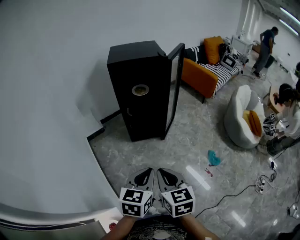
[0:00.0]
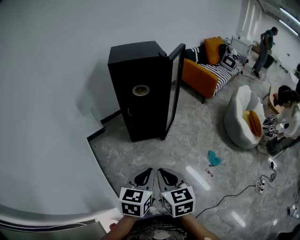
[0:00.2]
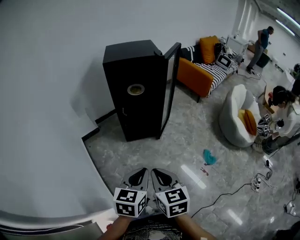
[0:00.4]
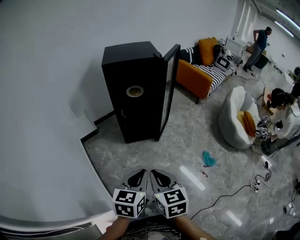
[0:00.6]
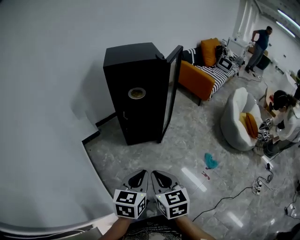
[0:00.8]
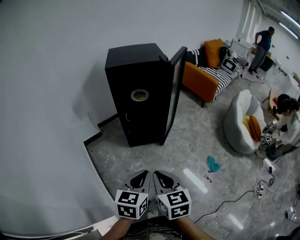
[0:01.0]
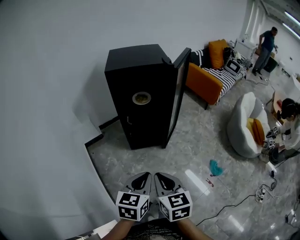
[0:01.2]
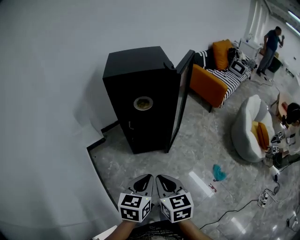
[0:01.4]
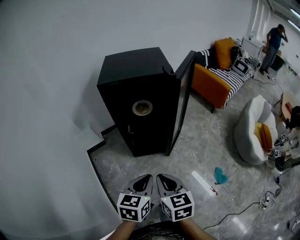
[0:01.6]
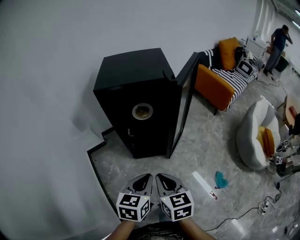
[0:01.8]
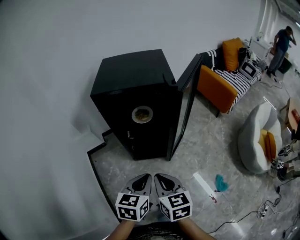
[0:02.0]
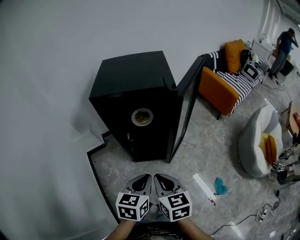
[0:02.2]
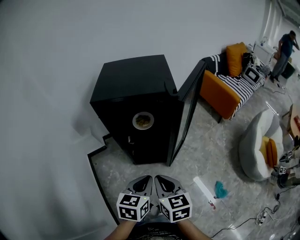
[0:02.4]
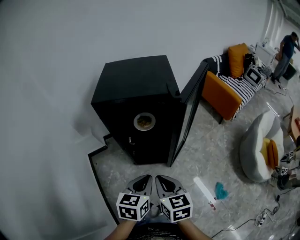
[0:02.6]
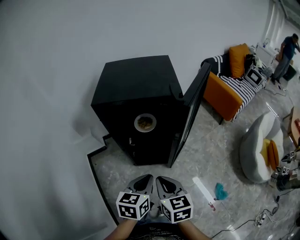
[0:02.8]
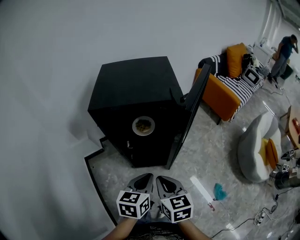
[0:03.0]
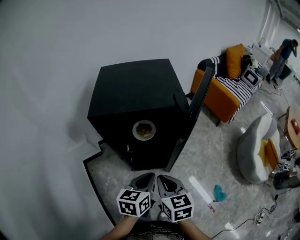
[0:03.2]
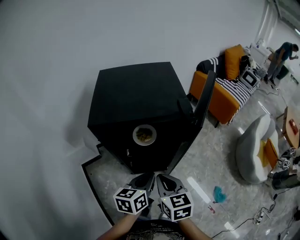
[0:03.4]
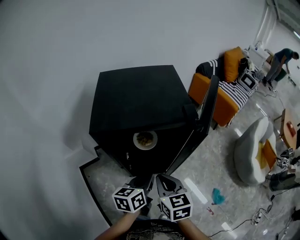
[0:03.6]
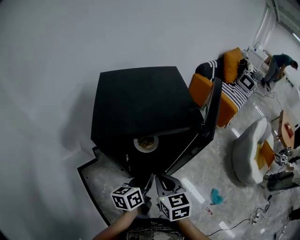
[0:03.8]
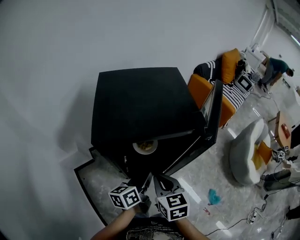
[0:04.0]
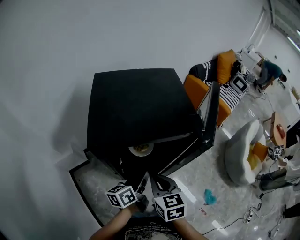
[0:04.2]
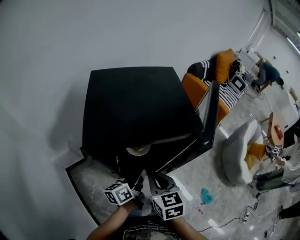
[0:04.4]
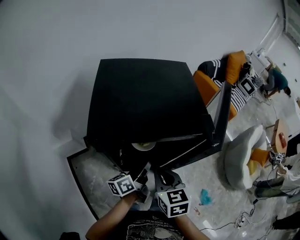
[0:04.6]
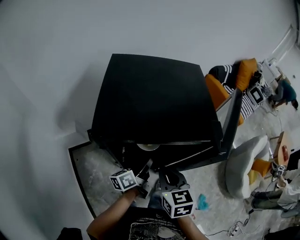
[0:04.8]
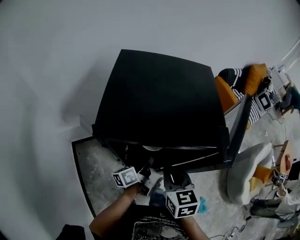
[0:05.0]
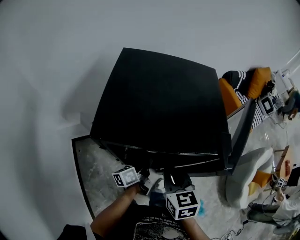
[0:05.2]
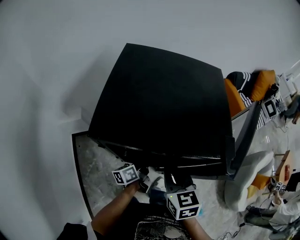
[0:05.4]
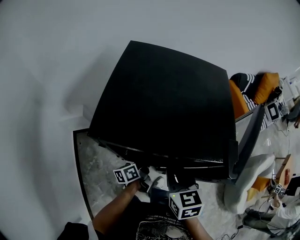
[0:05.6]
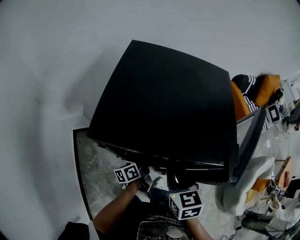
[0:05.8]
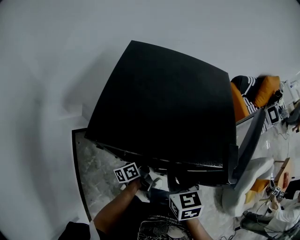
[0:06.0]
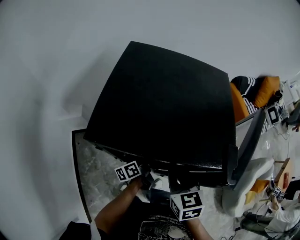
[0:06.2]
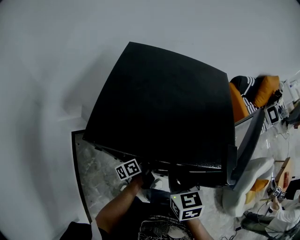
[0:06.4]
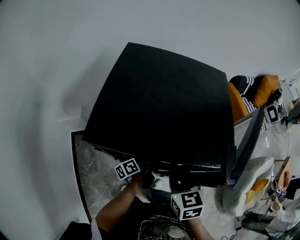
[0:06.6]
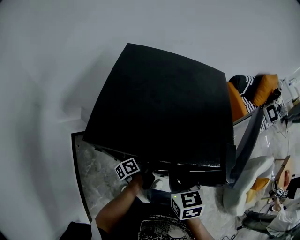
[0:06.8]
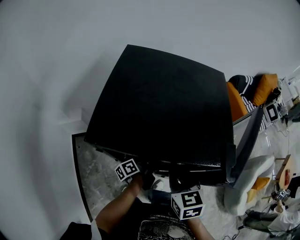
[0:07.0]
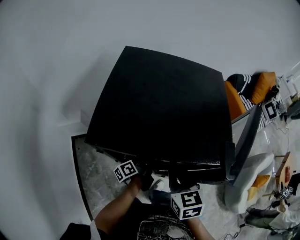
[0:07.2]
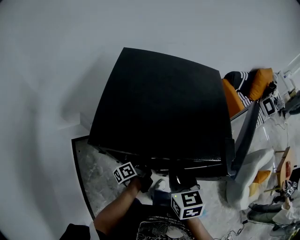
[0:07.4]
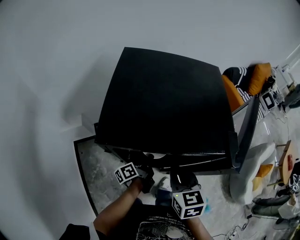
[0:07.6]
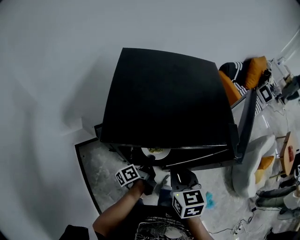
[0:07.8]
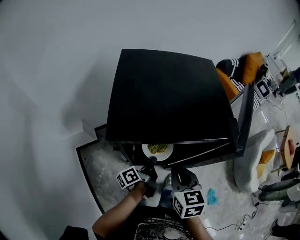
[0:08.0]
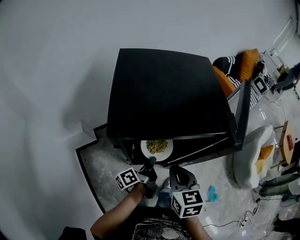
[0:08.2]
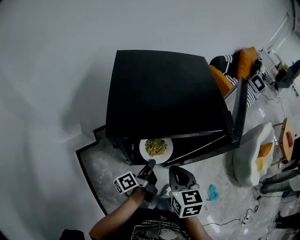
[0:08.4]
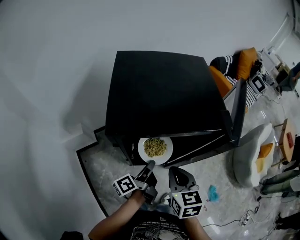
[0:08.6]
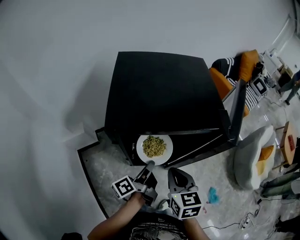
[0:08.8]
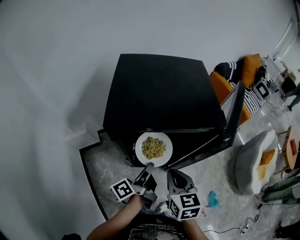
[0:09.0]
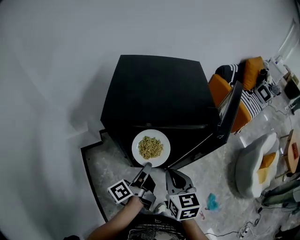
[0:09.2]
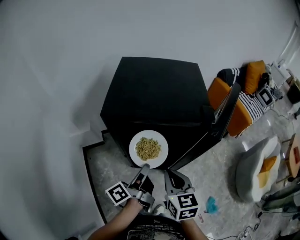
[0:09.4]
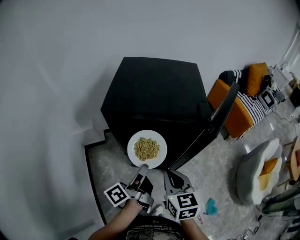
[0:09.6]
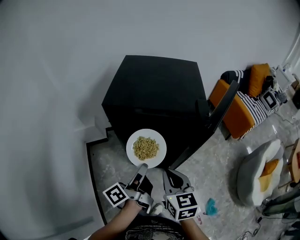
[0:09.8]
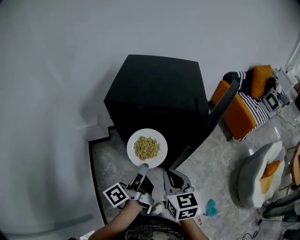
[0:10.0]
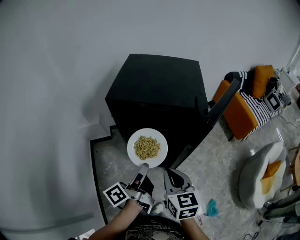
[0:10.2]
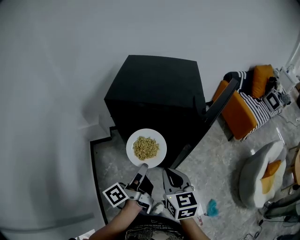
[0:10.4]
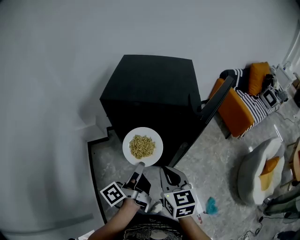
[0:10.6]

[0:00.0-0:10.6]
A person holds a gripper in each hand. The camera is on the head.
0:00.0 to 0:01.6: The two grippers go roughly 25 cm forward.
0:01.6 to 0:03.0: The two grippers go about 20 cm forward.
0:03.0 to 0:04.6: The grippers both shift forward and to the left by roughly 20 cm. The left gripper rotates around the line of its fingers by about 40 degrees, counterclockwise from behind.
0:04.6 to 0:06.0: The right gripper is displaced forward by about 5 cm, while the left gripper travels downward and forward by about 15 cm, changes its angle by approximately 20 degrees, and opens up.
0:06.0 to 0:07.6: The left gripper closes up.
0:07.6 to 0:09.0: The right gripper is displaced backward by roughly 10 cm; the left gripper shifts approximately 20 cm upward and backward.
0:09.0 to 0:10.6: The right gripper moves backward and to the right, roughly 10 cm; the left gripper travels backward and upward by approximately 15 cm.

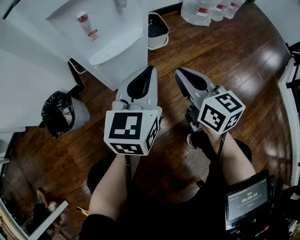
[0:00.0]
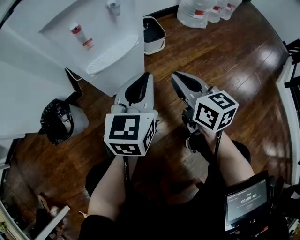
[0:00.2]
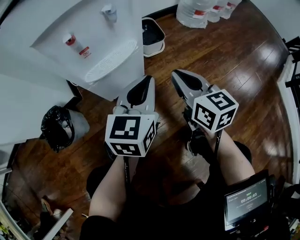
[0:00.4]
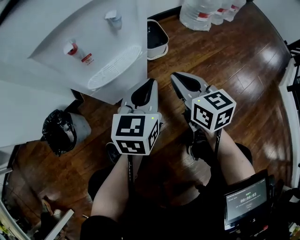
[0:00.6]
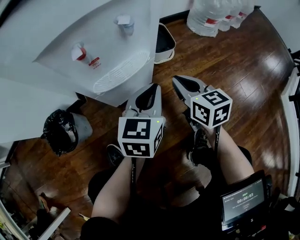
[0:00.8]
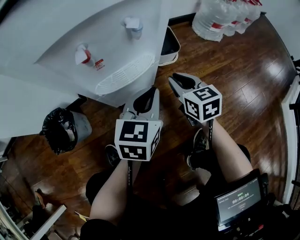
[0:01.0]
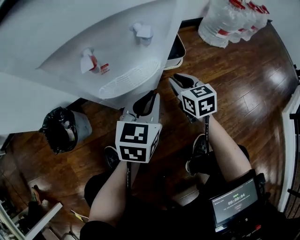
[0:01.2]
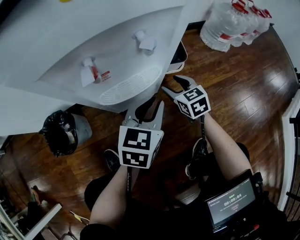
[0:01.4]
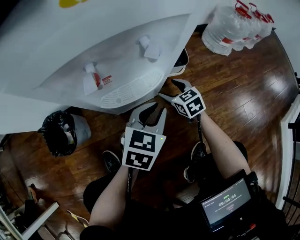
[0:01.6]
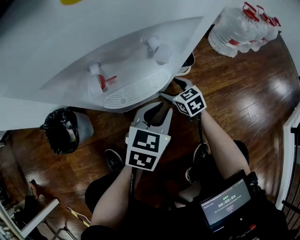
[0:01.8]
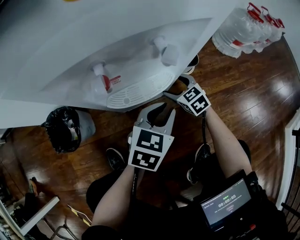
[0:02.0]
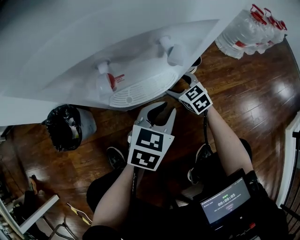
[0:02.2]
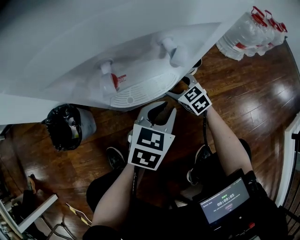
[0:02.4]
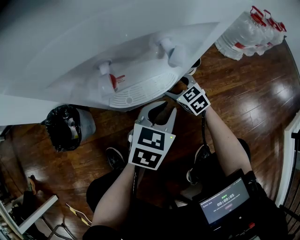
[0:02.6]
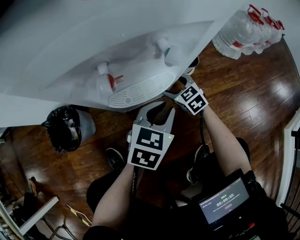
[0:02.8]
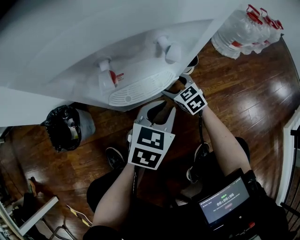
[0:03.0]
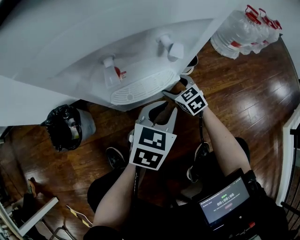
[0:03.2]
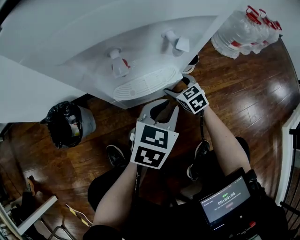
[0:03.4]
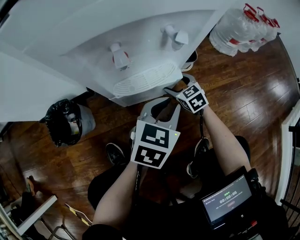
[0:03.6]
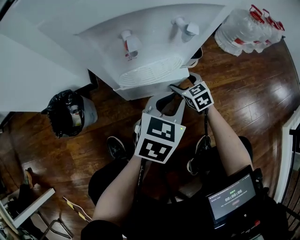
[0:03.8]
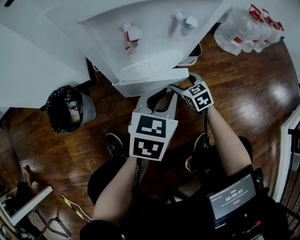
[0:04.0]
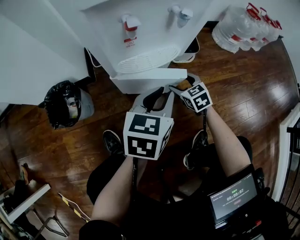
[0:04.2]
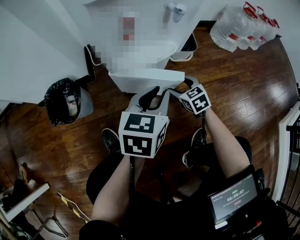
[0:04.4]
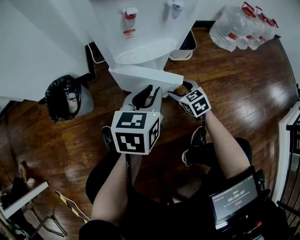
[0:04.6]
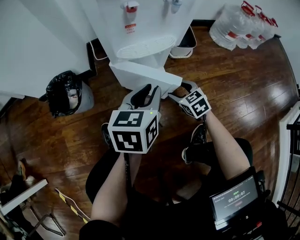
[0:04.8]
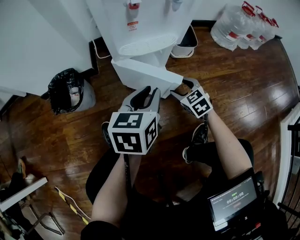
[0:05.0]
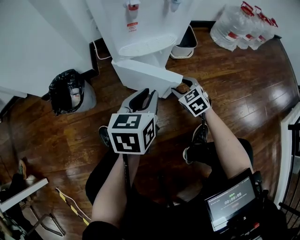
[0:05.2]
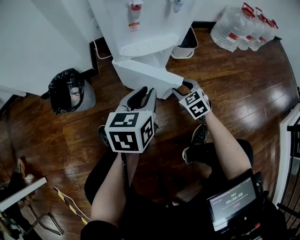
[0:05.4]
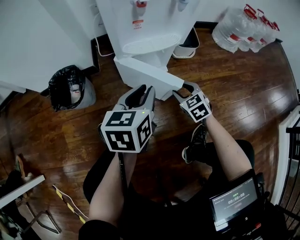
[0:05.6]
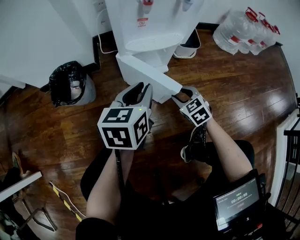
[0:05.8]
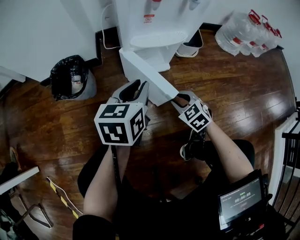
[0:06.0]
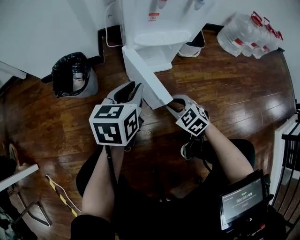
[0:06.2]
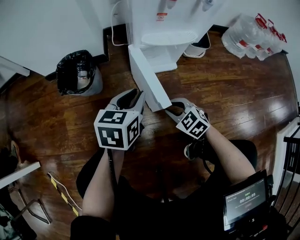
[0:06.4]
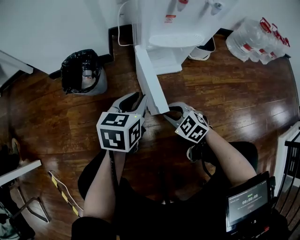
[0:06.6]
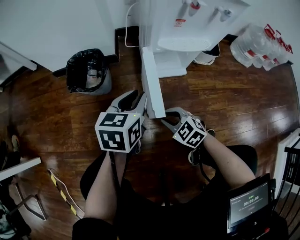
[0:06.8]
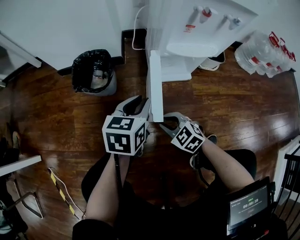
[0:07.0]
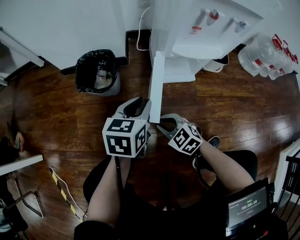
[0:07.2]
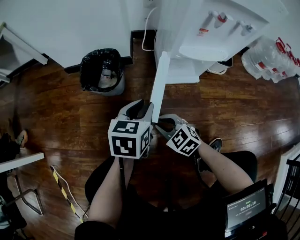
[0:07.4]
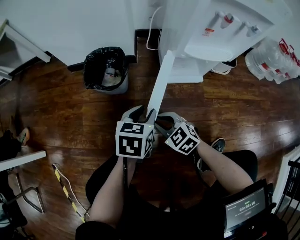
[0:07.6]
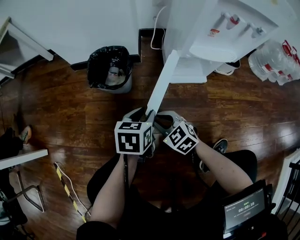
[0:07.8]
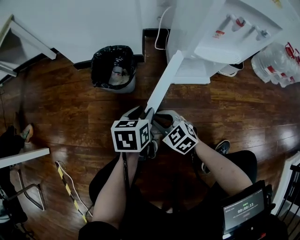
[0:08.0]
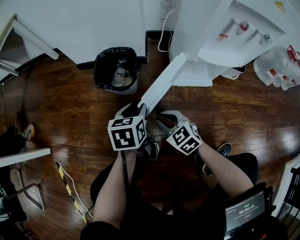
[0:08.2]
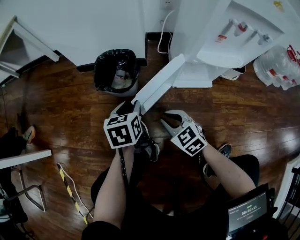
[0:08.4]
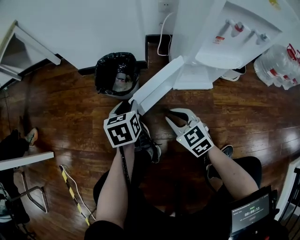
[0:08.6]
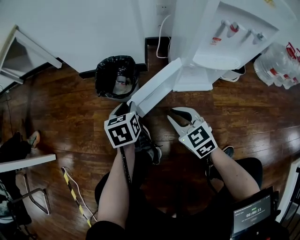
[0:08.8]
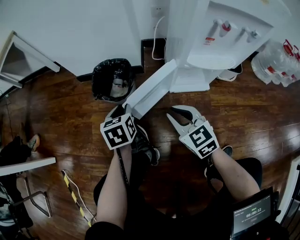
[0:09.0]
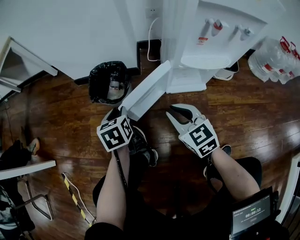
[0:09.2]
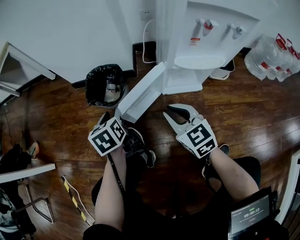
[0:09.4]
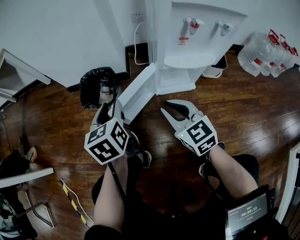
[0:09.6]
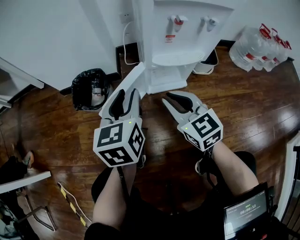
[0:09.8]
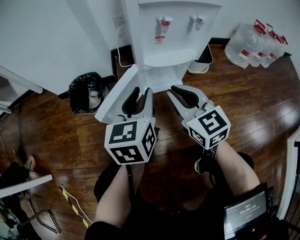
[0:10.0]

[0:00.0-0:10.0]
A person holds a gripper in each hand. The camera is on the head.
0:00.0 to 0:01.4: The right gripper moves forward and downward, roughly 25 cm, rotates some 30 degrees, and opens up; the left gripper goes some 15 cm forward and downward.
0:01.4 to 0:02.8: The right gripper goes approximately 5 cm downward.
0:02.8 to 0:04.2: Both grippers travel together backward, some 5 cm.
0:04.2 to 0:05.8: The left gripper heads to the left and backward, covering roughly 10 cm. The right gripper moves backward, some 15 cm, and closes.
0:05.8 to 0:07.2: The left gripper heads to the left, covering approximately 15 cm. The right gripper is displaced to the left by some 25 cm, and rotates about 30 degrees.
0:07.2 to 0:08.6: The right gripper shifts about 5 cm forward. The left gripper shifts roughly 15 cm to the left, forward and downward, and swivels roughly 30 degrees.
0:08.6 to 0:10.0: The two grippers go some 25 cm to the right and upward. The right gripper swivels some 30 degrees; the left gripper changes its angle by approximately 30 degrees.

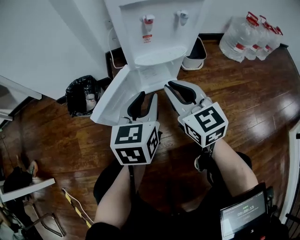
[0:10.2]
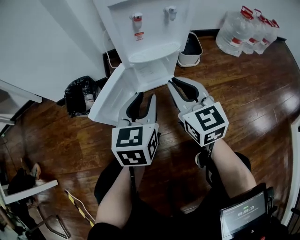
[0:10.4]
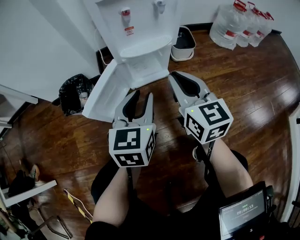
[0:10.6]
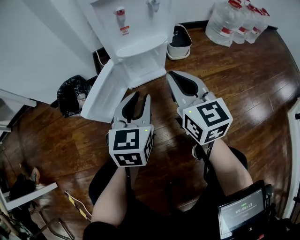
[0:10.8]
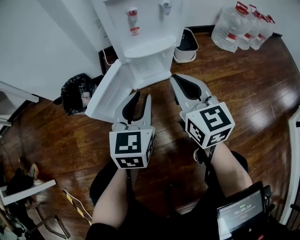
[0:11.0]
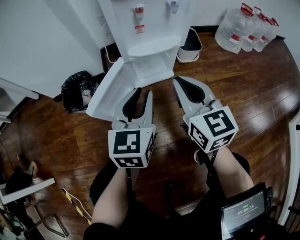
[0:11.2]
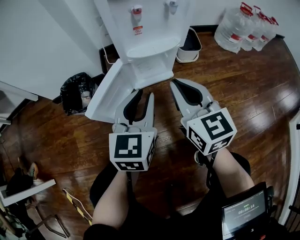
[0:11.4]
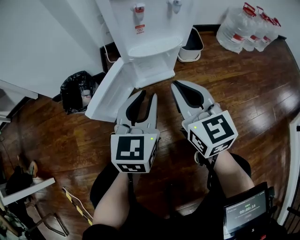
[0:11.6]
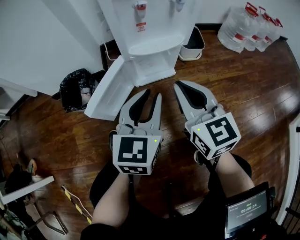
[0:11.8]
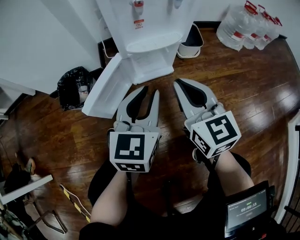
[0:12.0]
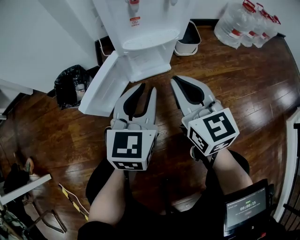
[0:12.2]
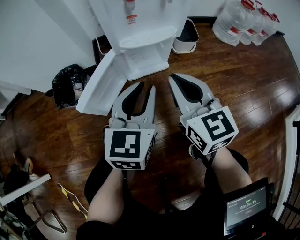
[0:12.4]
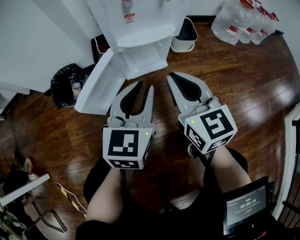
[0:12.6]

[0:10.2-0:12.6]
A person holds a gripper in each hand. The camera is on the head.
0:11.4 to 0:12.6: There are only small adjustments of the grippers.
